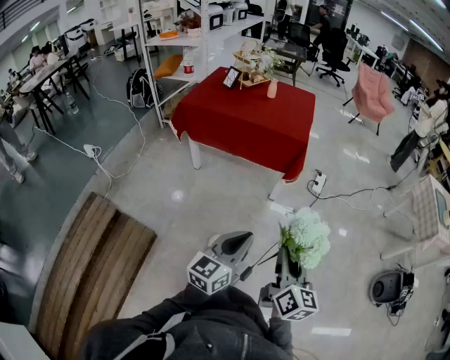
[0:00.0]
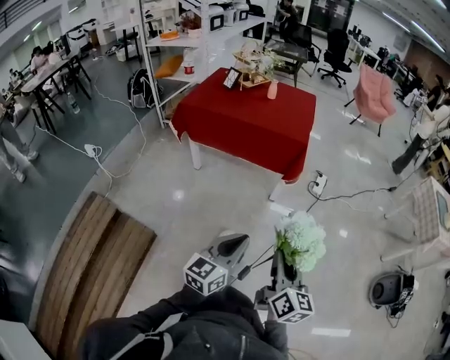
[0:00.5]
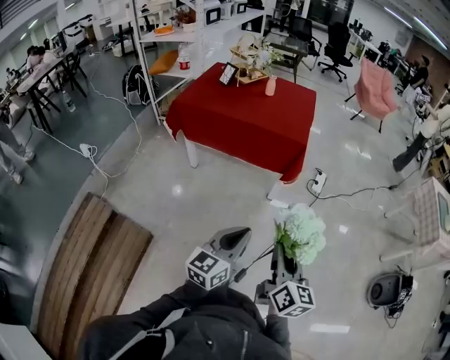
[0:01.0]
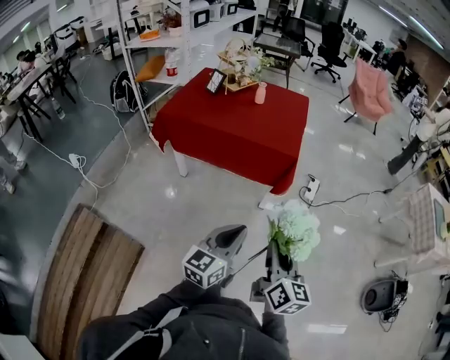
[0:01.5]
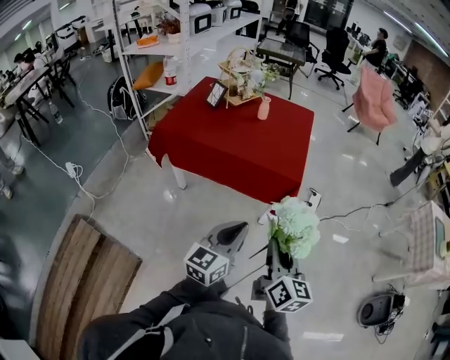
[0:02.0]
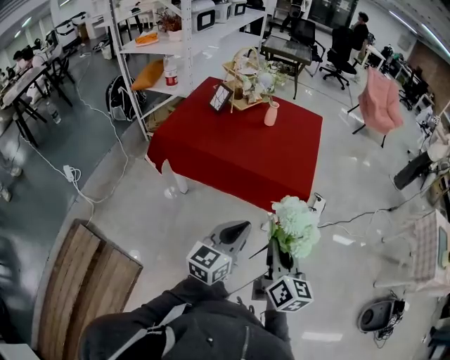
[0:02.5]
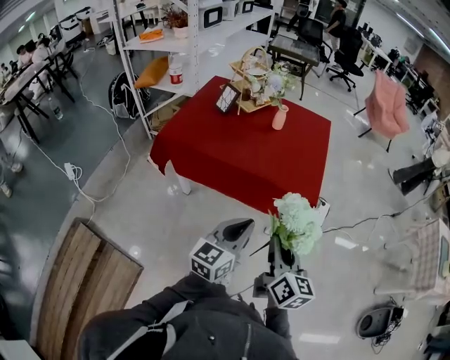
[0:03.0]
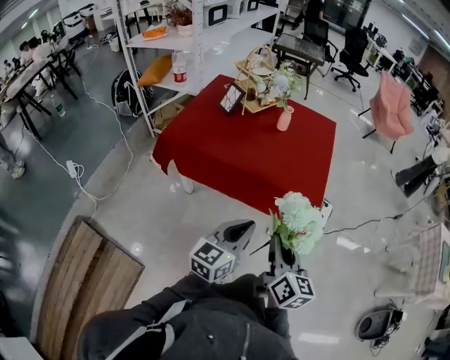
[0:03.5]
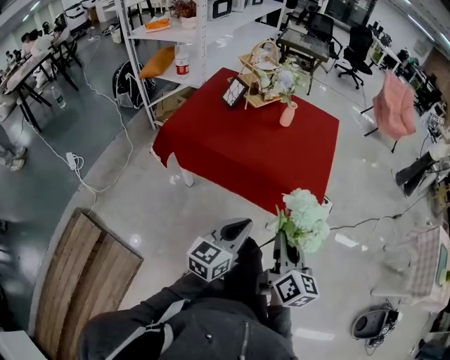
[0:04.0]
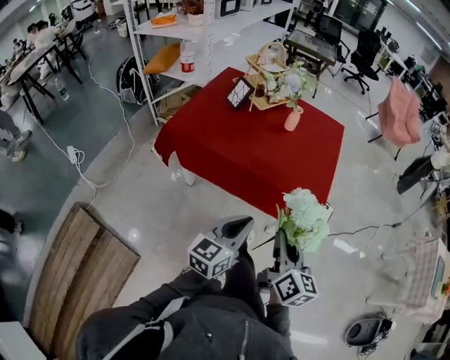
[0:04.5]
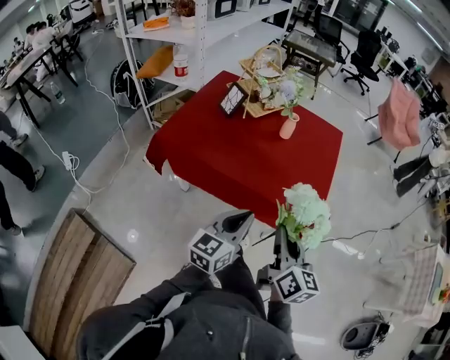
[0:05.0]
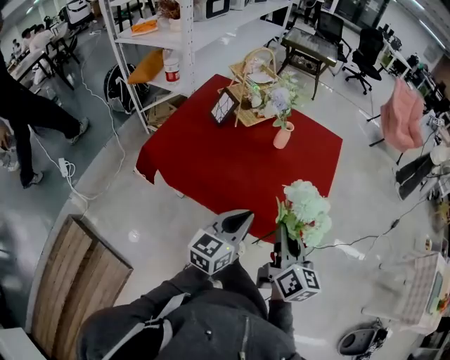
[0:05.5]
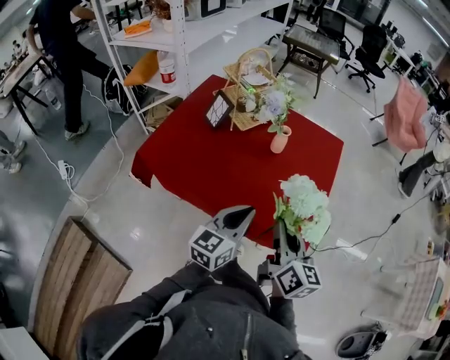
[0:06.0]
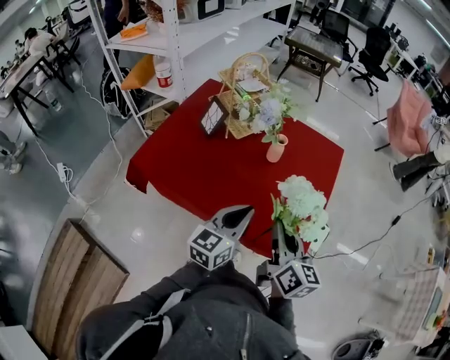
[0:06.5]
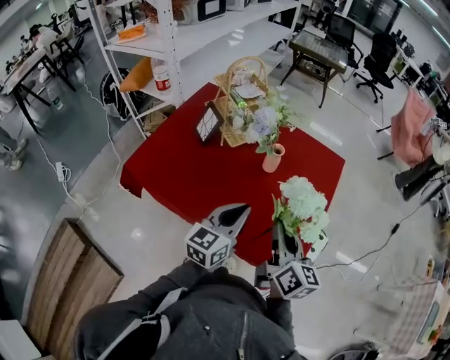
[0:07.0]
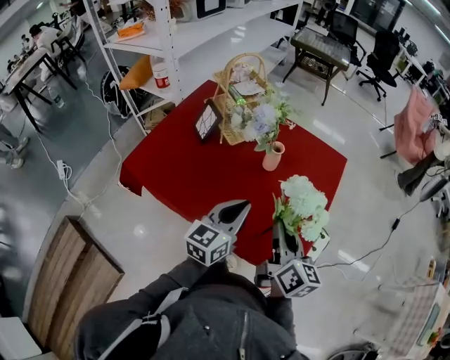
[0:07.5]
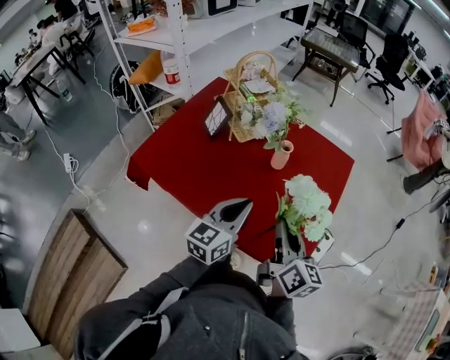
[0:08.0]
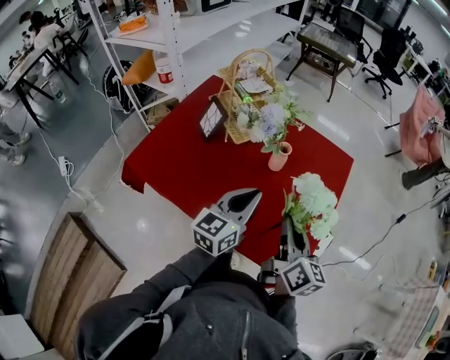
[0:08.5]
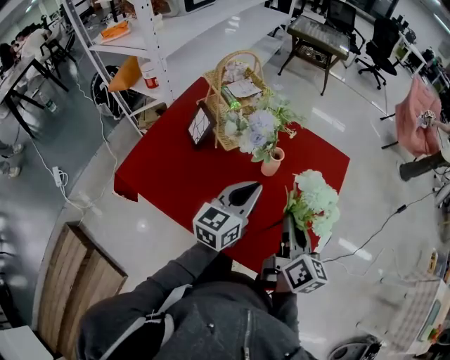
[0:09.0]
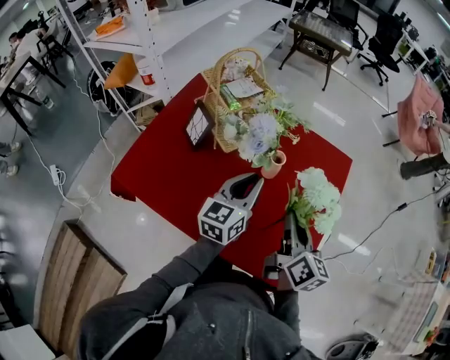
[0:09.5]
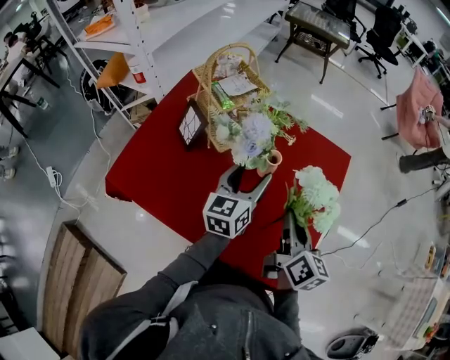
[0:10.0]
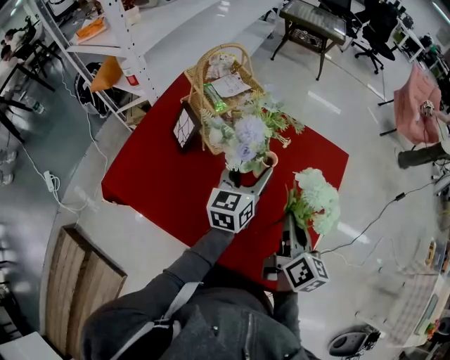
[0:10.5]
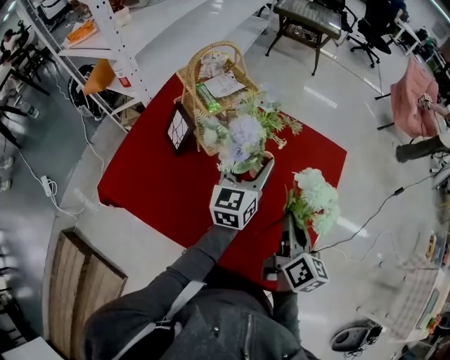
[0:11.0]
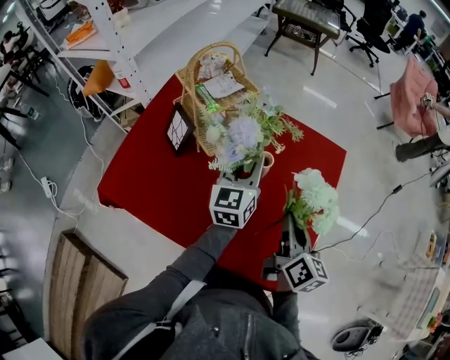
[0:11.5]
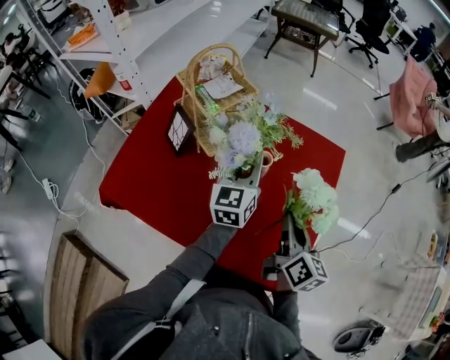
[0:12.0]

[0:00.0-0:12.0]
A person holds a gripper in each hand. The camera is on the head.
0:00.0 to 0:02.0: Both grippers travel together forward, approximately 25 cm.
0:02.0 to 0:04.0: Both grippers move forward and to the left, about 15 cm.
0:04.0 to 0:06.0: The grippers both shift forward by roughly 25 cm.
0:06.0 to 0:08.0: Both grippers move forward, approximately 10 cm.
0:08.0 to 0:10.0: The left gripper goes approximately 20 cm forward, and opens, while the right gripper shifts about 10 cm forward.
0:10.0 to 0:12.0: The left gripper moves forward, approximately 5 cm, and closes its fingers.

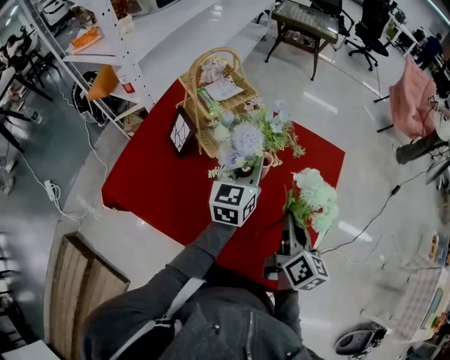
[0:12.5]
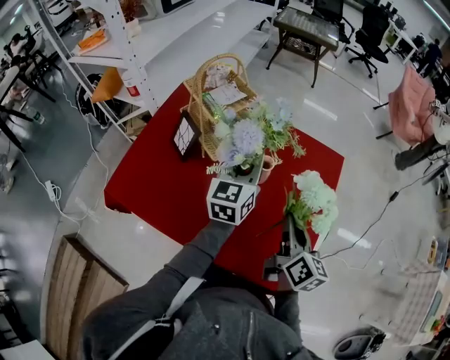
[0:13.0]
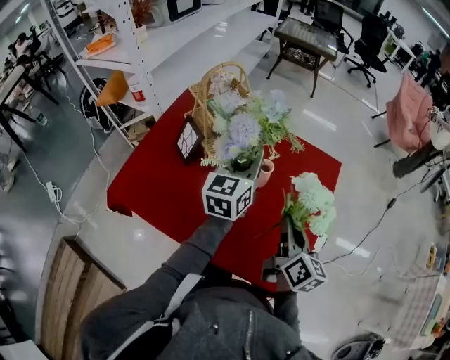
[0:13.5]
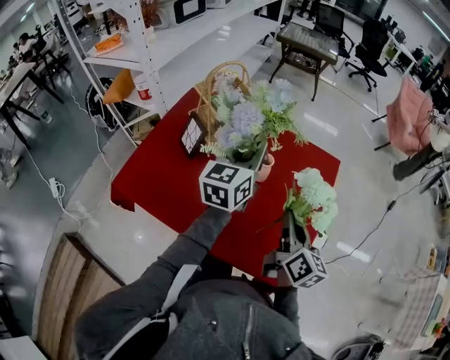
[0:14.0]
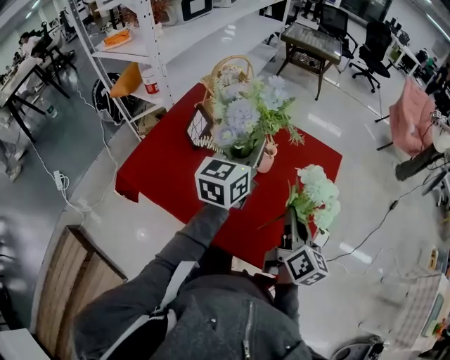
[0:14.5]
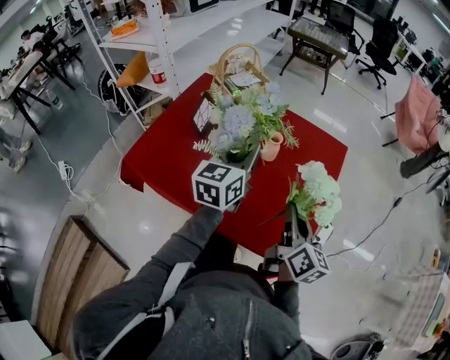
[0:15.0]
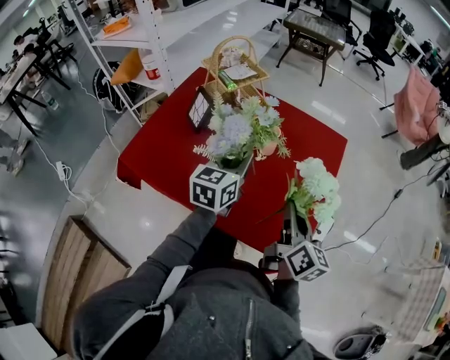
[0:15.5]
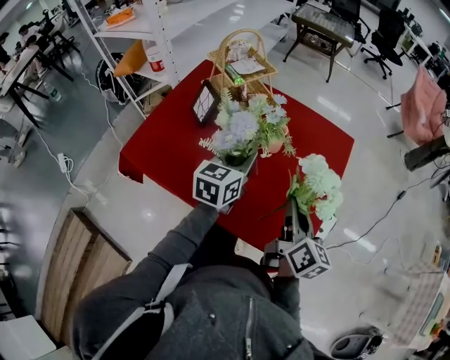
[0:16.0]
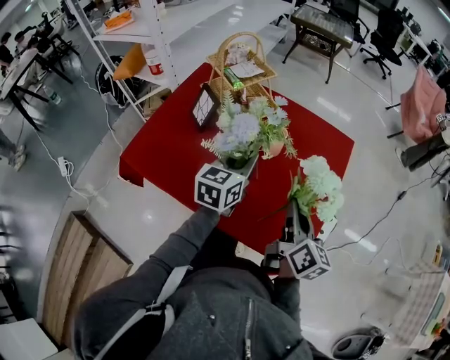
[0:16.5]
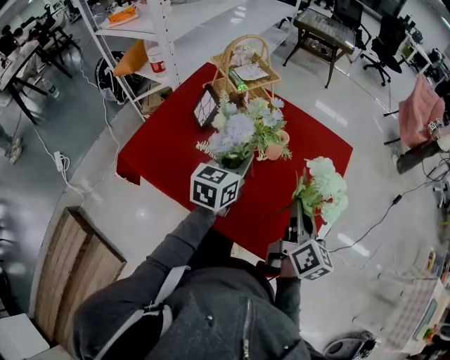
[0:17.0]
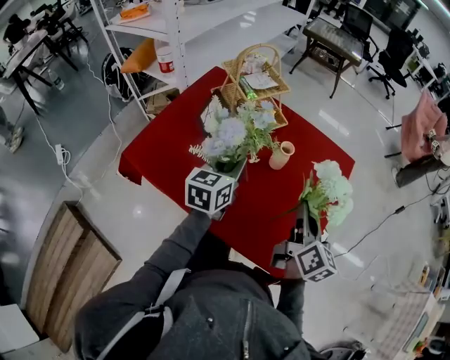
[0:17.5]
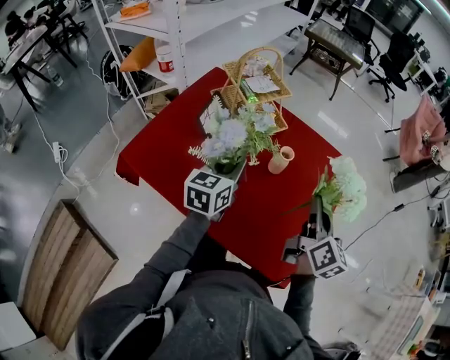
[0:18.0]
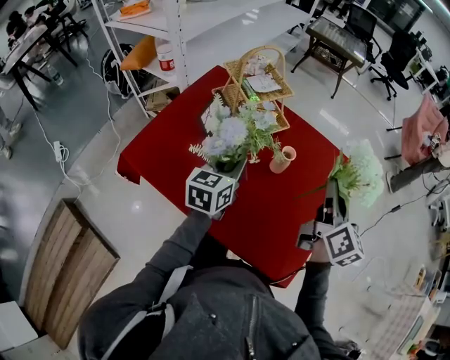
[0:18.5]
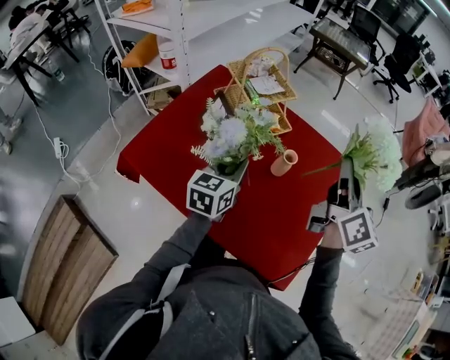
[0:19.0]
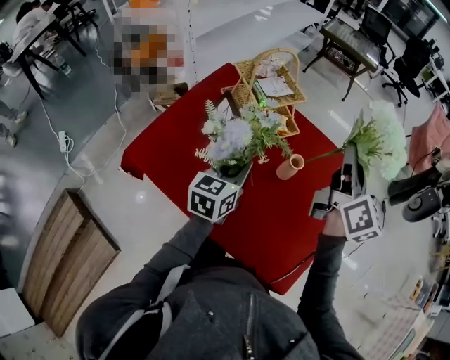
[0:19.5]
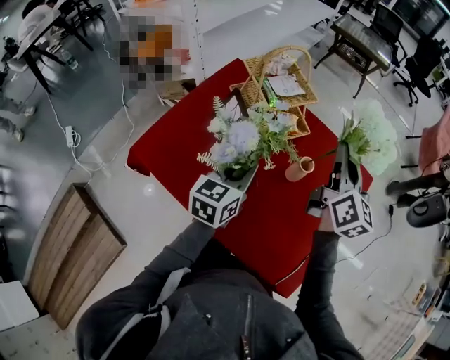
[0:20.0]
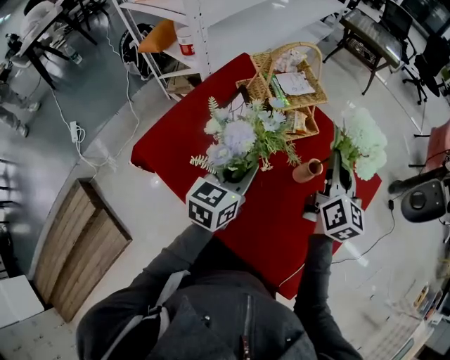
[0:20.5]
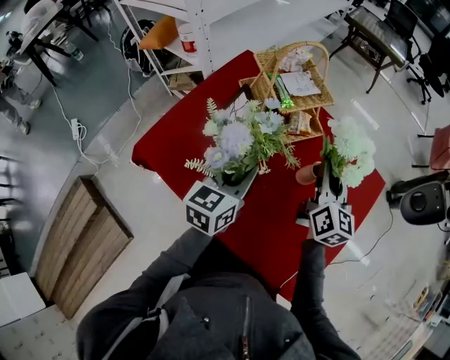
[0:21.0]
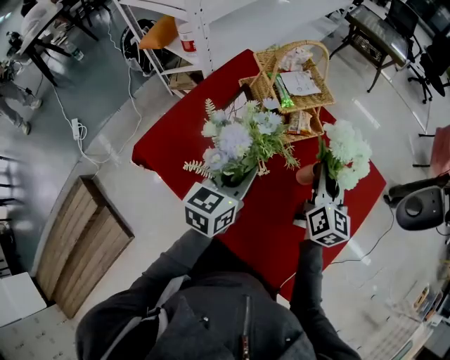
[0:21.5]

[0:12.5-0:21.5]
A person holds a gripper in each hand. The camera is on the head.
0:12.5 to 0:14.5: The left gripper is displaced upward and backward by about 15 cm, while the right gripper travels backward by roughly 5 cm.
0:14.5 to 0:17.0: The left gripper heads downward, covering approximately 10 cm.
0:17.0 to 0:19.5: The left gripper moves to the left, roughly 5 cm; the right gripper moves forward and upward, about 25 cm.
0:19.5 to 0:21.5: The right gripper travels downward by approximately 15 cm.

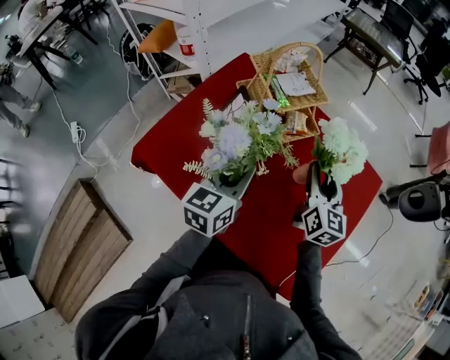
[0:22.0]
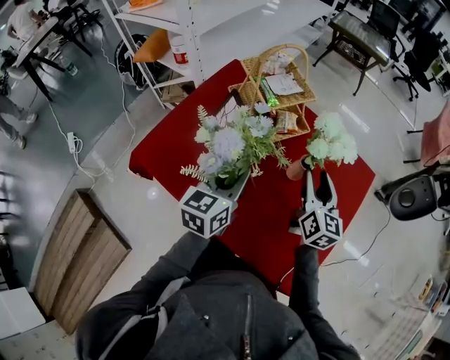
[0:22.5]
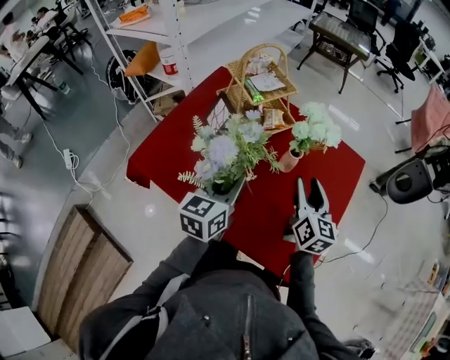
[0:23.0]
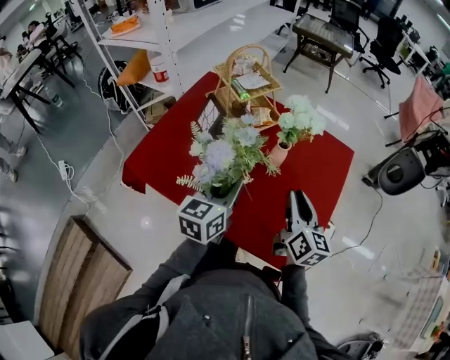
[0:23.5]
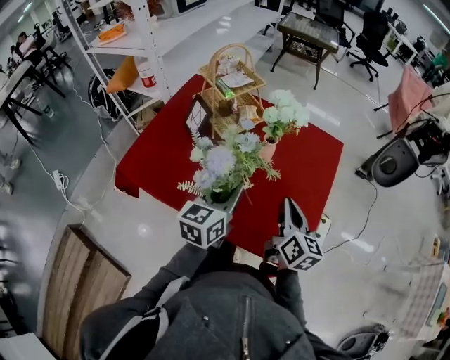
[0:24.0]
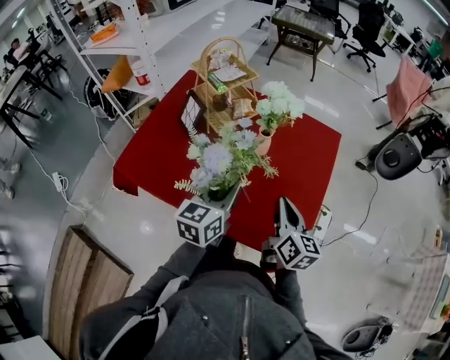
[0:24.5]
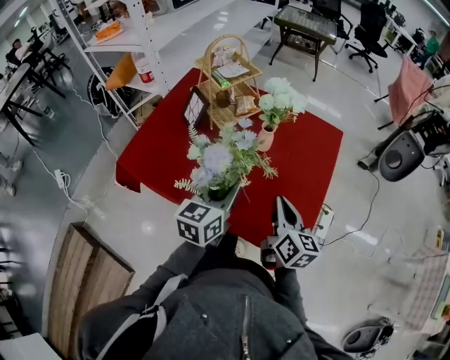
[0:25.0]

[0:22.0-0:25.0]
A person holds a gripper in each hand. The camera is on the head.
0:22.0 to 0:23.5: The left gripper is displaced backward and to the right by some 10 cm. The right gripper goes about 15 cm backward.
0:23.5 to 0:25.0: The left gripper ends up some 5 cm from where it was; the right gripper moves backward, about 5 cm, and closes up.

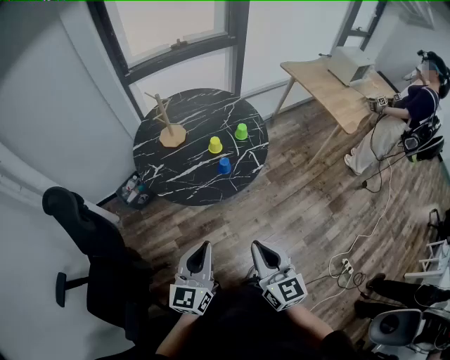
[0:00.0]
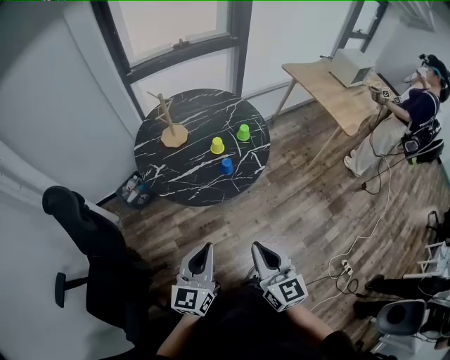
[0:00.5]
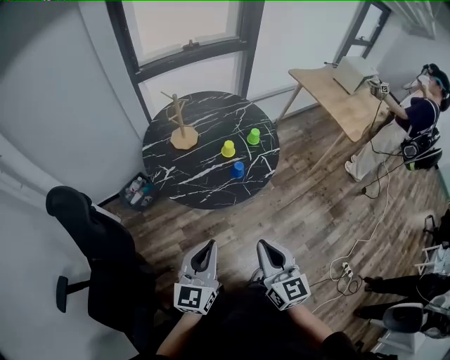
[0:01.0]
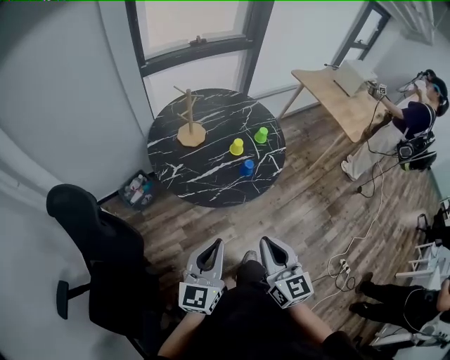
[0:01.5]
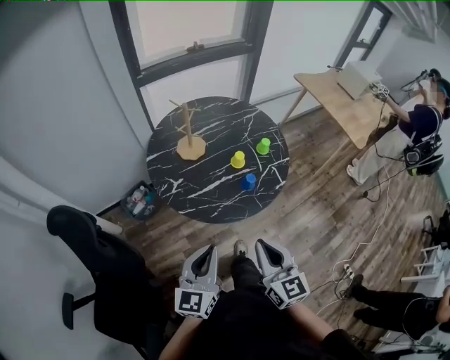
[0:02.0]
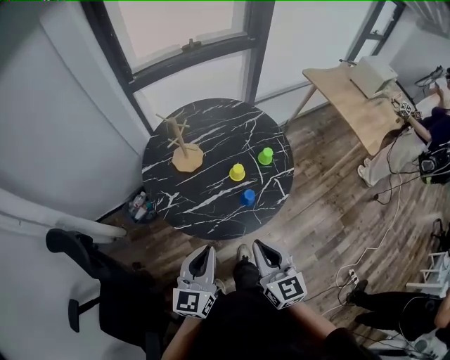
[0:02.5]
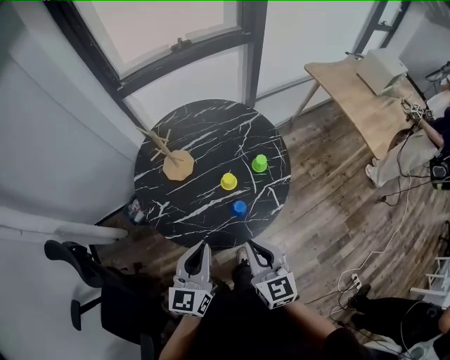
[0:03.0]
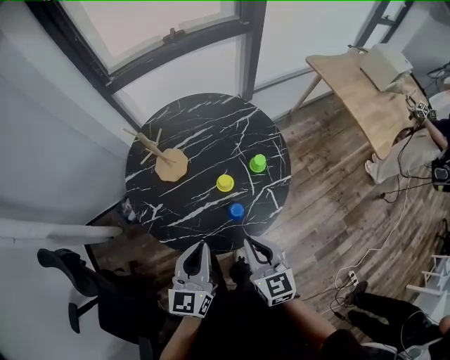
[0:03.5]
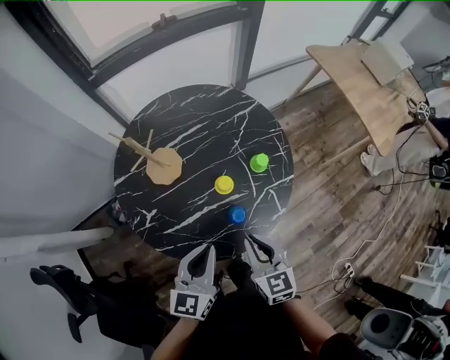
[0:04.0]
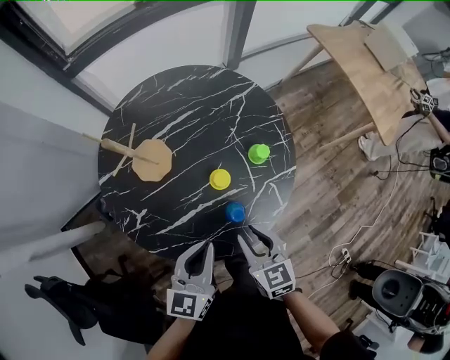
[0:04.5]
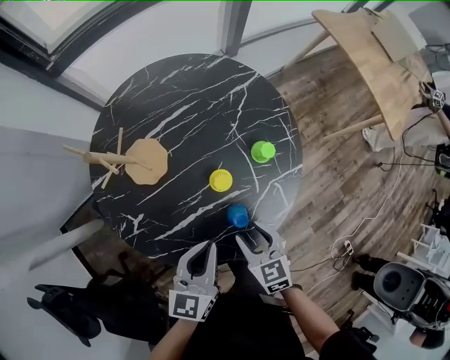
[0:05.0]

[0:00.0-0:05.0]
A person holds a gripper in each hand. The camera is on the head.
0:00.0 to 0:02.5: The grippers both shift forward and to the left by about 20 cm.
0:02.5 to 0:05.0: The right gripper is displaced downward and forward by some 30 cm, changes its angle by roughly 30 degrees, and opens its fingers. The left gripper travels forward, downward and to the right by approximately 25 cm.
